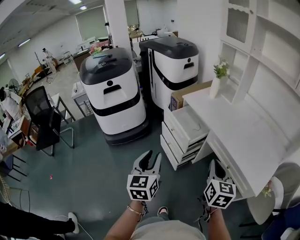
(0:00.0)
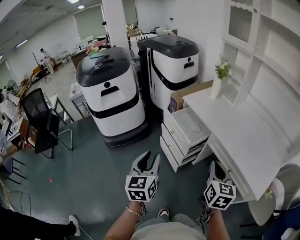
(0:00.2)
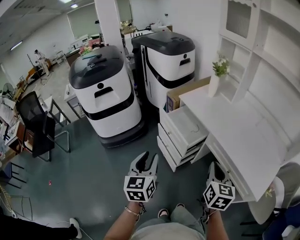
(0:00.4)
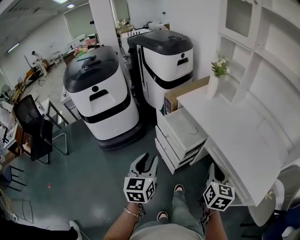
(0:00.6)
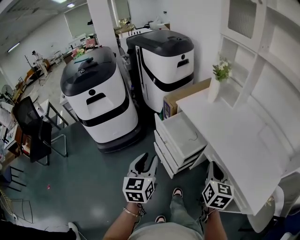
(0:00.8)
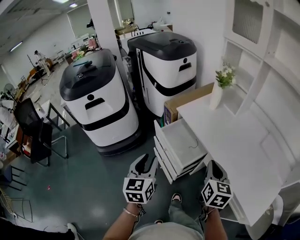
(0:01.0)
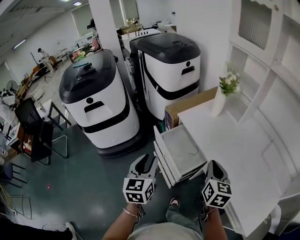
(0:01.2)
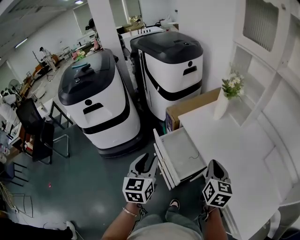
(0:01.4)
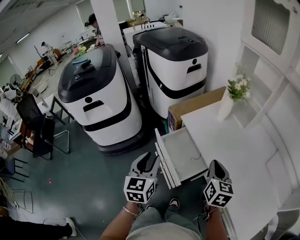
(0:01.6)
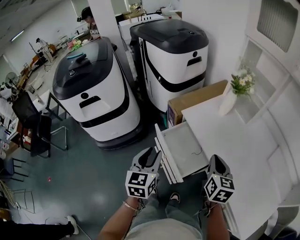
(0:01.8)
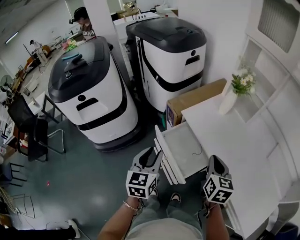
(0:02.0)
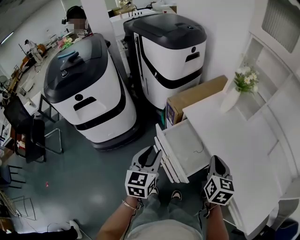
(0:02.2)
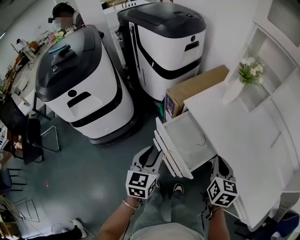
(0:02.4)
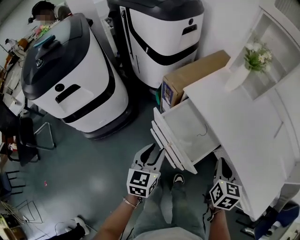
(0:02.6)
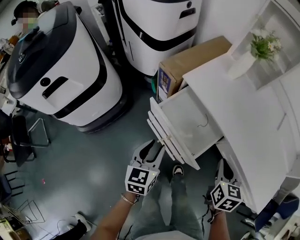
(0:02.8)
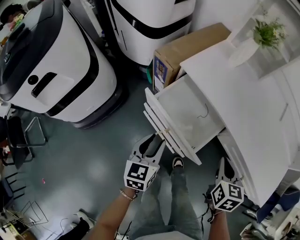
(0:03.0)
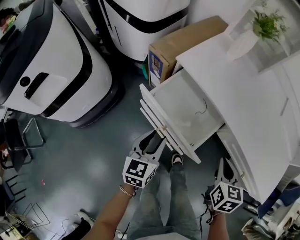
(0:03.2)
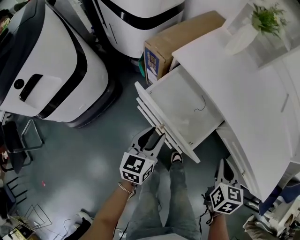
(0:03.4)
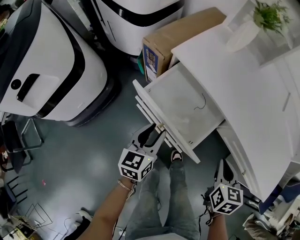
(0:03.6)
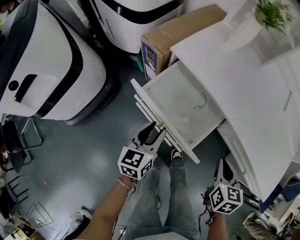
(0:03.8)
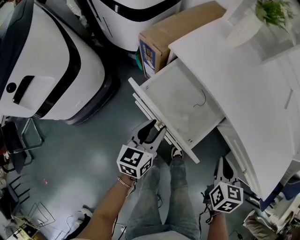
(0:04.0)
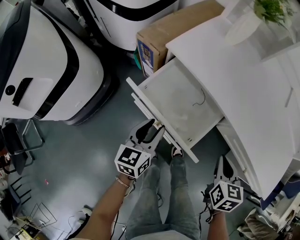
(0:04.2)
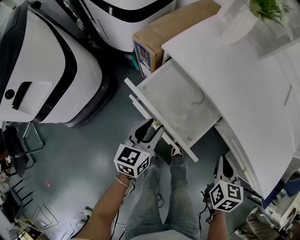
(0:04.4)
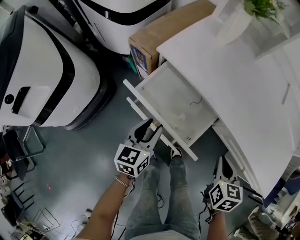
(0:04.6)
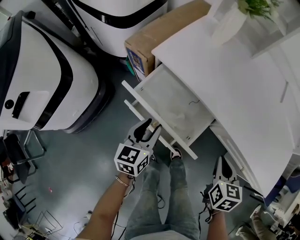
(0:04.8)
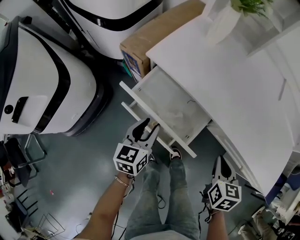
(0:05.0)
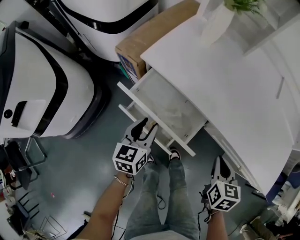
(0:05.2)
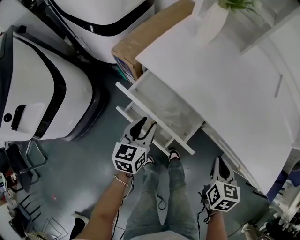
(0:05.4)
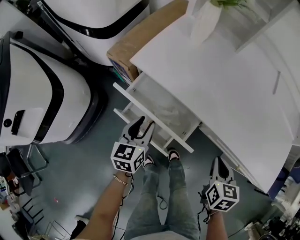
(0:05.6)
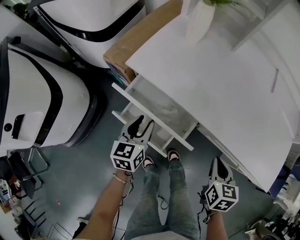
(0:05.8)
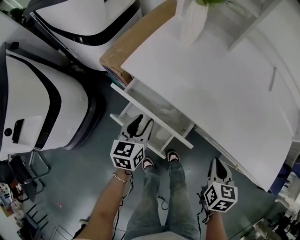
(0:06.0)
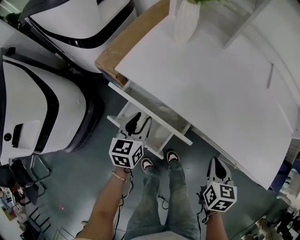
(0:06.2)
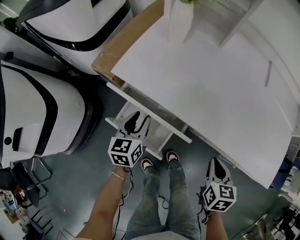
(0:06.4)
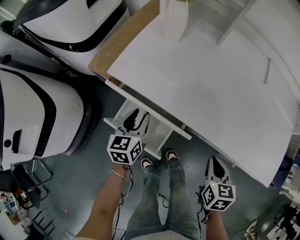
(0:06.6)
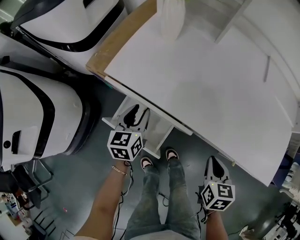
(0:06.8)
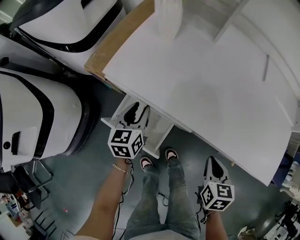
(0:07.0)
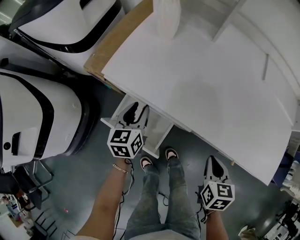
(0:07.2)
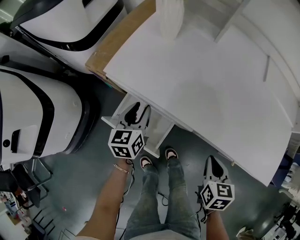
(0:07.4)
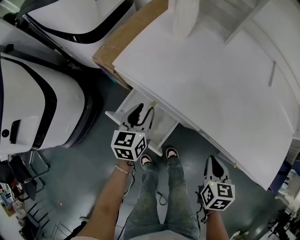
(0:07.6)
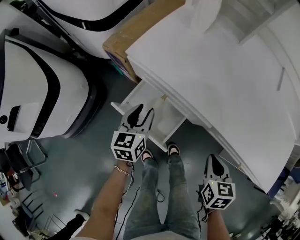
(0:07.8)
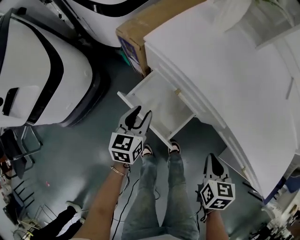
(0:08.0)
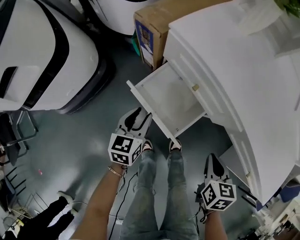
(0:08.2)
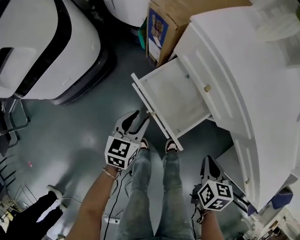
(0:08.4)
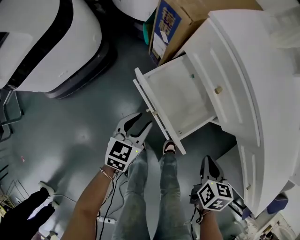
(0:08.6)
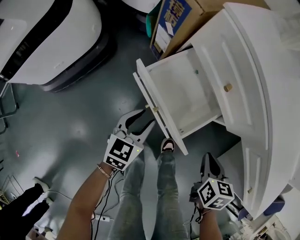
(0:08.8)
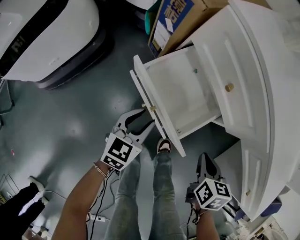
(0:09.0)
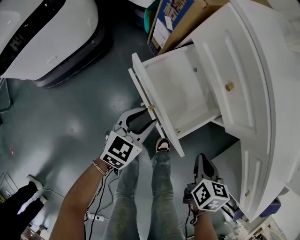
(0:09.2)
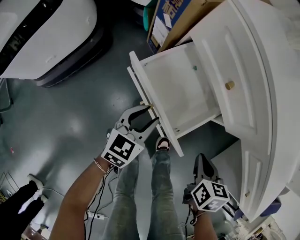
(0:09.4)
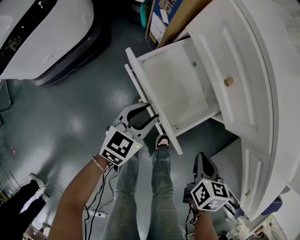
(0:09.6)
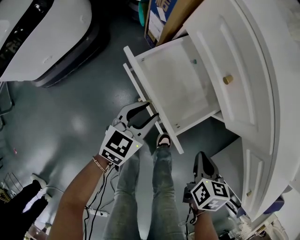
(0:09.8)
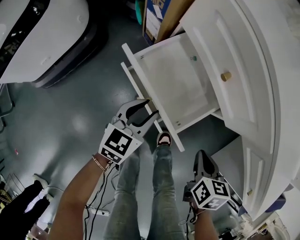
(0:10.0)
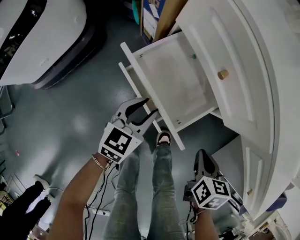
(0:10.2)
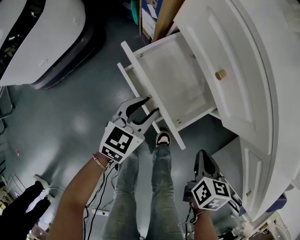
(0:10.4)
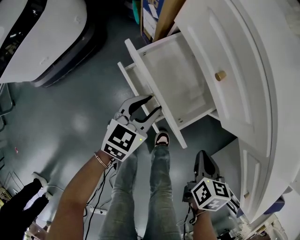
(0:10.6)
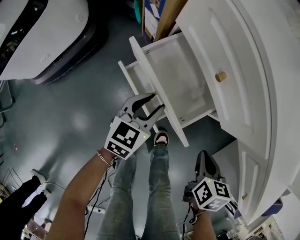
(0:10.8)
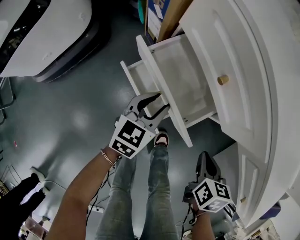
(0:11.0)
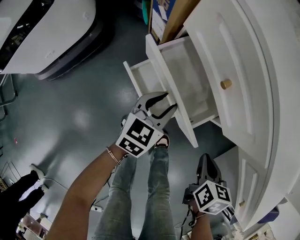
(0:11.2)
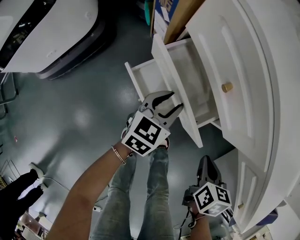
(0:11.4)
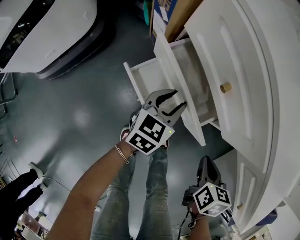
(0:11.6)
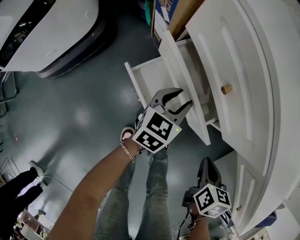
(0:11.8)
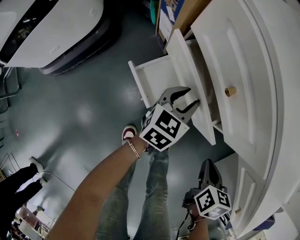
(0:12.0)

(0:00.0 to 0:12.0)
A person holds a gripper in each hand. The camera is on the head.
0:00.0 - 0:01.6: The grippers both shift forward by roughly 35 cm.
0:01.6 - 0:03.0: The left gripper shifts some 20 cm downward, and swivels some 30 degrees; the right gripper heads downward and backward, covering some 15 cm, and changes its angle by roughly 30 degrees.
0:03.0 - 0:04.4: The right gripper heads downward, covering roughly 5 cm. The left gripper heads forward, covering roughly 5 cm.
0:04.4 - 0:06.0: The right gripper heads to the right, covering approximately 5 cm; the left gripper travels forward by about 10 cm.
0:07.6 - 0:09.0: The right gripper shifts about 25 cm downward and to the left; the left gripper is displaced downward, backward and to the left by about 30 cm.
0:09.0 - 0:10.4: The left gripper ends up roughly 5 cm from where it was.
0:10.4 - 0:12.0: The left gripper goes roughly 10 cm forward and to the right.

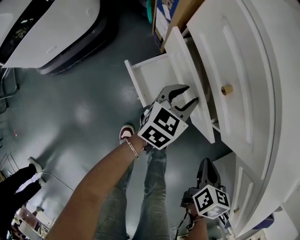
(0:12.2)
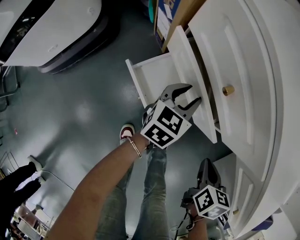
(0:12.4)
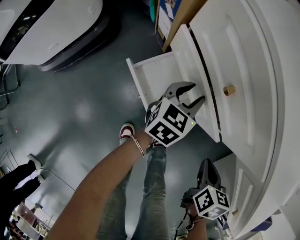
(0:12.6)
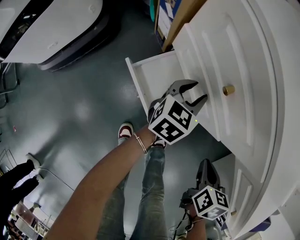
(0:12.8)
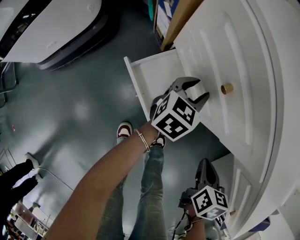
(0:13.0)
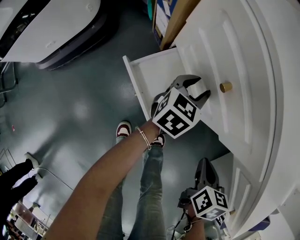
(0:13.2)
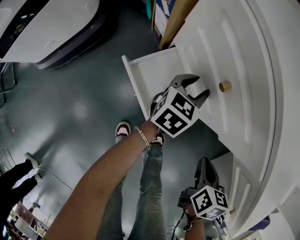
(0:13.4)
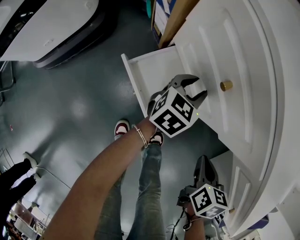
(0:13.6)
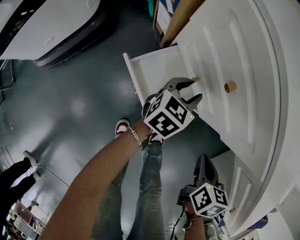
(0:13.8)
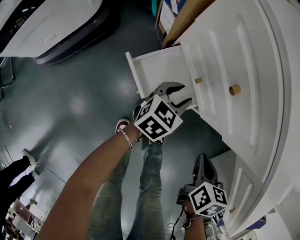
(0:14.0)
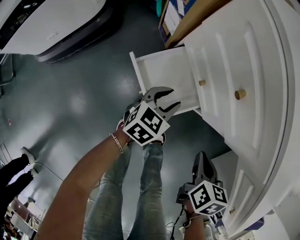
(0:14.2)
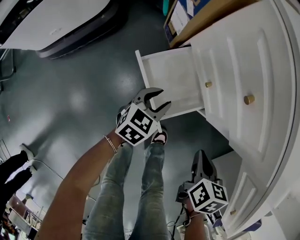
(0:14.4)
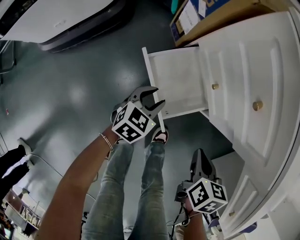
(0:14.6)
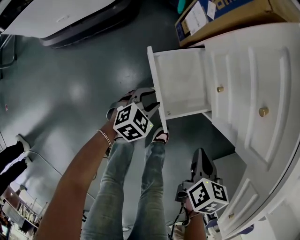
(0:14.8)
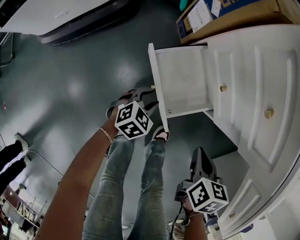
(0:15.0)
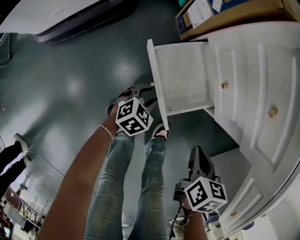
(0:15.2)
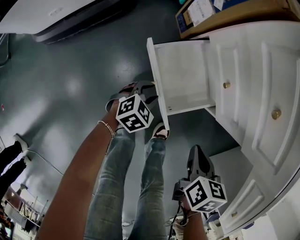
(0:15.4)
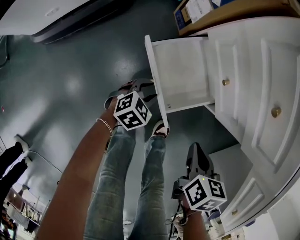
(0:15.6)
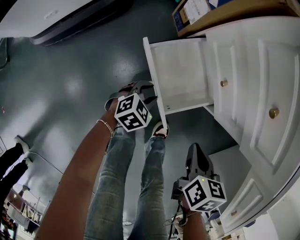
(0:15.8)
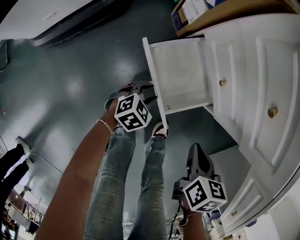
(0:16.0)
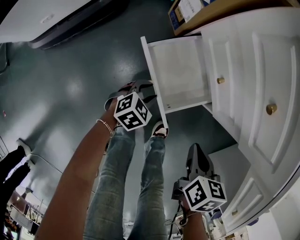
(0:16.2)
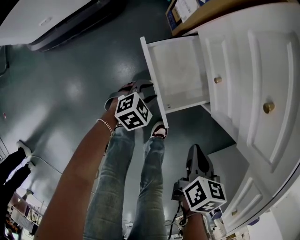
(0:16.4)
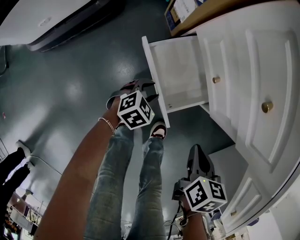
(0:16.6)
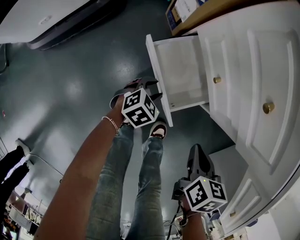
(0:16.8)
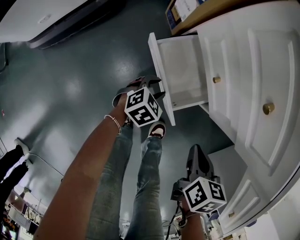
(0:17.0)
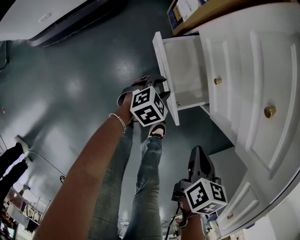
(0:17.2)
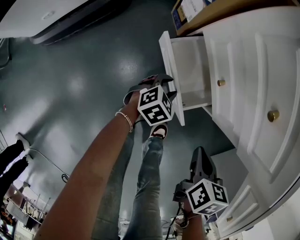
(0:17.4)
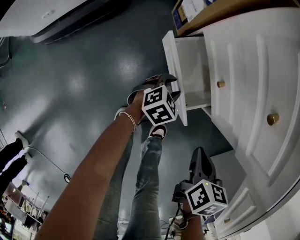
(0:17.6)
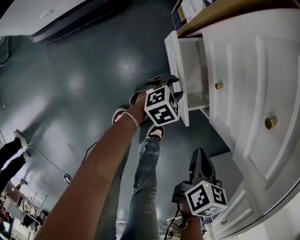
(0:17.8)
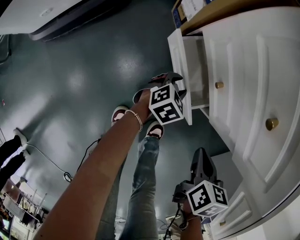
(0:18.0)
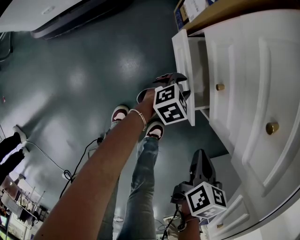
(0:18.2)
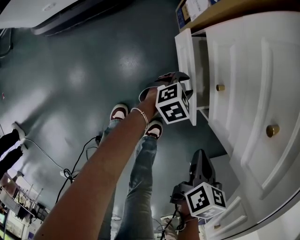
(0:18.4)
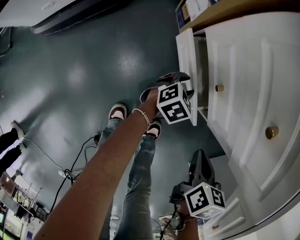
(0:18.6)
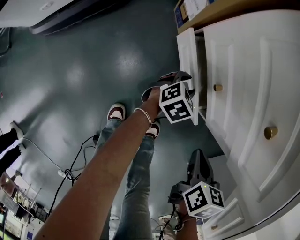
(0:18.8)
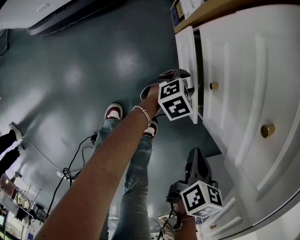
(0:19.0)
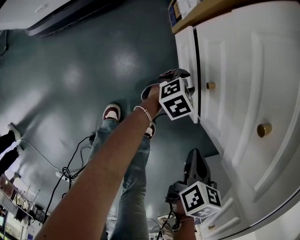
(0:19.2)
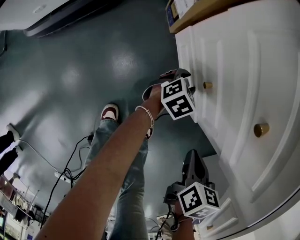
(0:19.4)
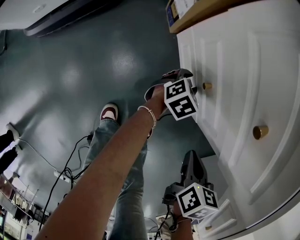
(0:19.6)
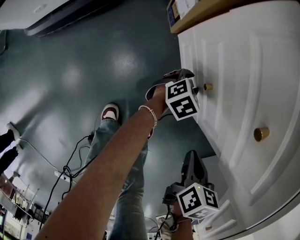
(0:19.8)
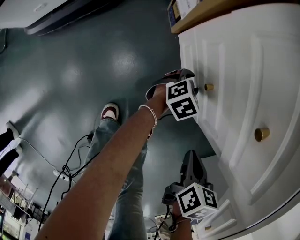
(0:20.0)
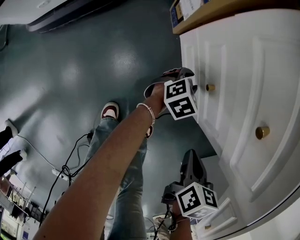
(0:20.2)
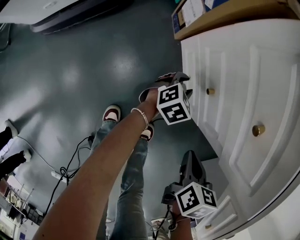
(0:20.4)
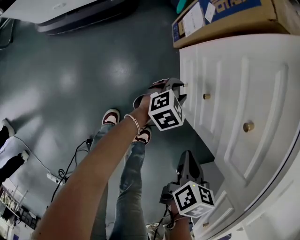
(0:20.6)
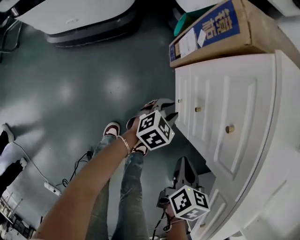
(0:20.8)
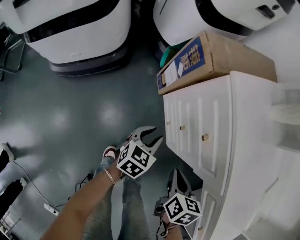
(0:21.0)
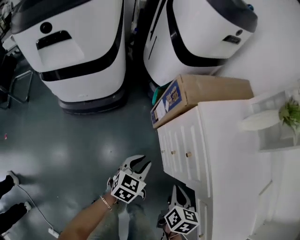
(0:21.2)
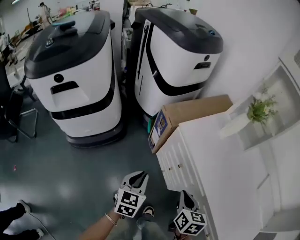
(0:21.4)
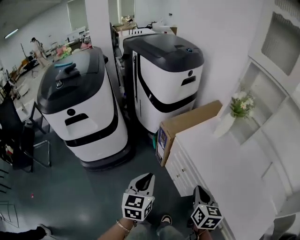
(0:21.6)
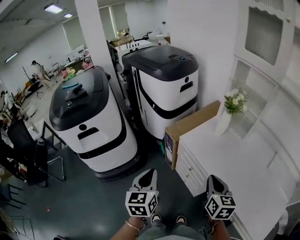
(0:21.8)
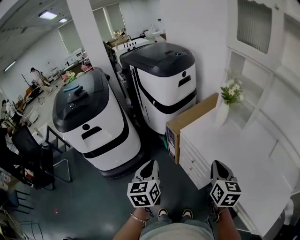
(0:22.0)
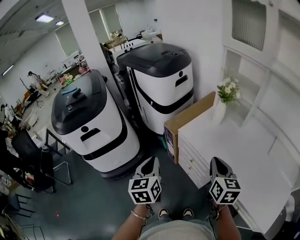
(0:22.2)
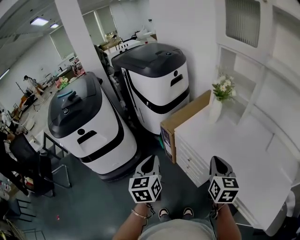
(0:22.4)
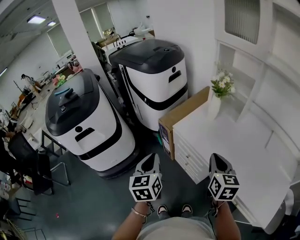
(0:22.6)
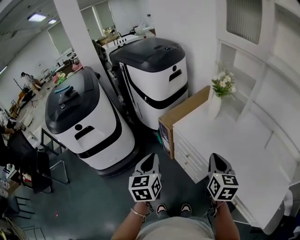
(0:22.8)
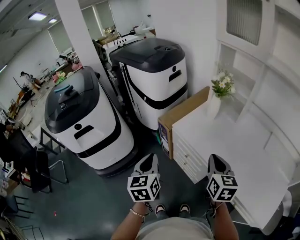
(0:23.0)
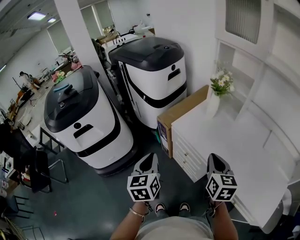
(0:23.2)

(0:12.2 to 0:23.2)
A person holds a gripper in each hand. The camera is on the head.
0:12.2 - 0:13.8: There are only small adjustments of the grippers.
0:13.8 - 0:15.4: The right gripper travels to the left and downward by roughly 10 cm. Meanwhile the left gripper is displaced downward, backward and to the left by about 25 cm, and turns by approximately 30 degrees.
0:15.4 - 0:17.0: The left gripper is displaced forward by some 5 cm.
0:17.0 - 0:18.4: The left gripper is displaced forward and to the right by roughly 10 cm.
0:18.4 - 0:20.0: The left gripper shifts approximately 5 cm forward.
0:20.0 - 0:21.6: Both grippers move upward, some 50 cm. The left gripper changes its angle by roughly 40 degrees, and closes its fingers. The right gripper tips its fingers upward by approximately 40 degrees.
0:21.6 - 0:23.2: Both grippers travel together upward, some 10 cm.

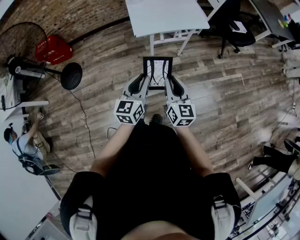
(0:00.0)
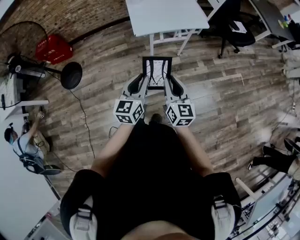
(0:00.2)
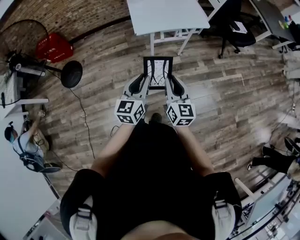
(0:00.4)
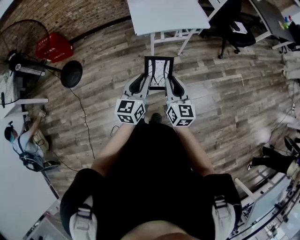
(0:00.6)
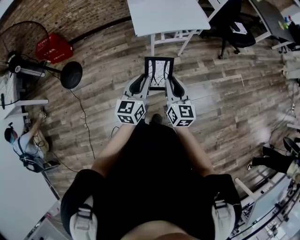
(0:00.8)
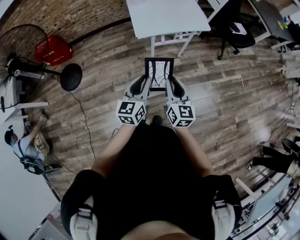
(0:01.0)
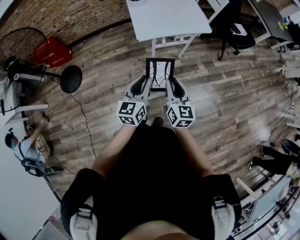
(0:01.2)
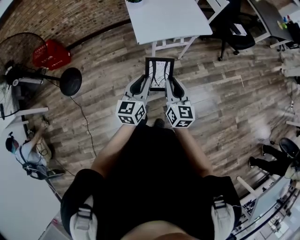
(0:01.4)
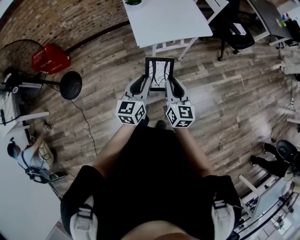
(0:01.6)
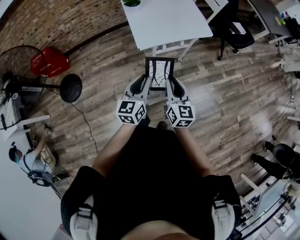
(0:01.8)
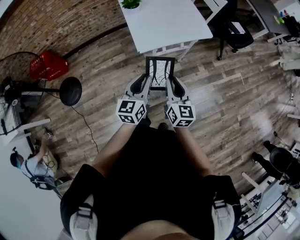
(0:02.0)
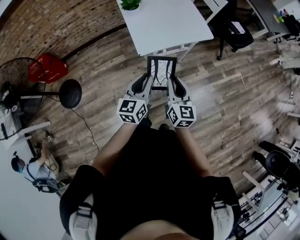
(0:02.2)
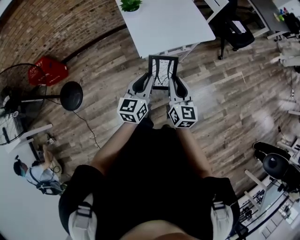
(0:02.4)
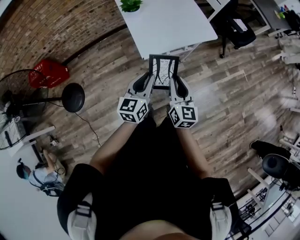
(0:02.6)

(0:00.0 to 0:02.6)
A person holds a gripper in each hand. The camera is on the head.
0:00.0 - 0:01.2: The grippers make only small movements.
0:01.2 - 0:02.6: Both grippers move forward and to the left, roughly 20 cm.
